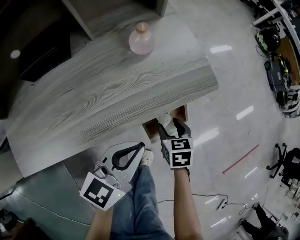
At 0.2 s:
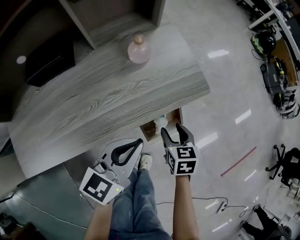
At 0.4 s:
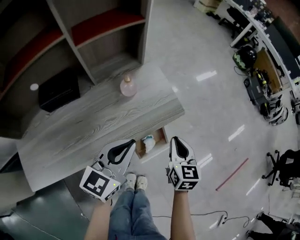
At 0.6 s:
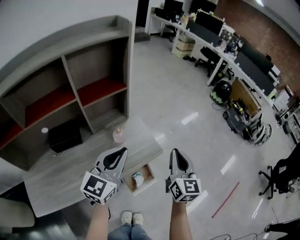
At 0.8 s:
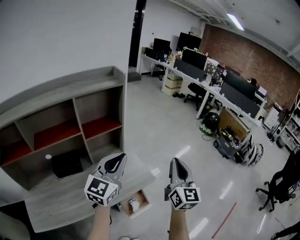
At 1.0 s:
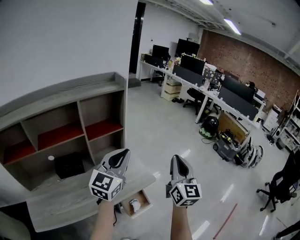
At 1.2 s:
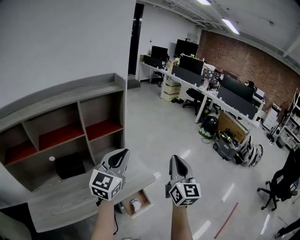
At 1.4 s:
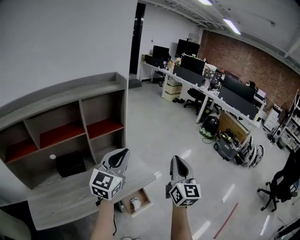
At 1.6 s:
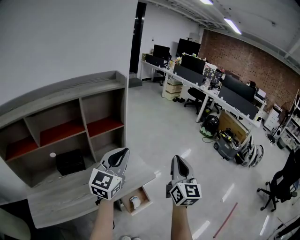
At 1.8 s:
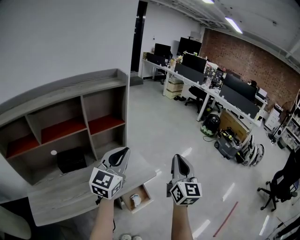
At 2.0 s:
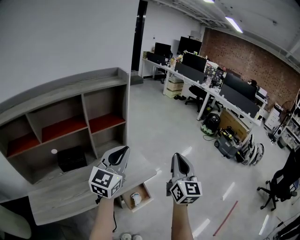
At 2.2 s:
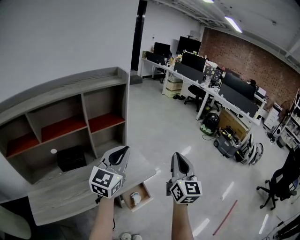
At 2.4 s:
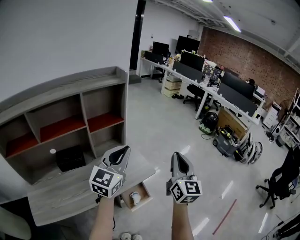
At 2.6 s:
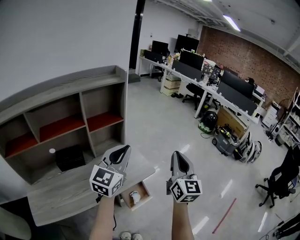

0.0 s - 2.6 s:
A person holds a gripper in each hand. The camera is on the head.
0.0 s - 1.2 s: The two grippers go roughly 50 cm upward. The right gripper tips its fingers upward by about 70 degrees, and closes its fingers, while the left gripper rotates approximately 40 degrees.
1.2 s - 2.6 s: The grippers make only small movements.

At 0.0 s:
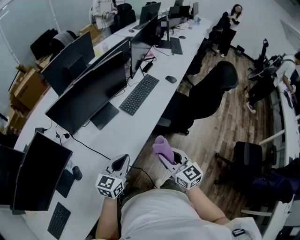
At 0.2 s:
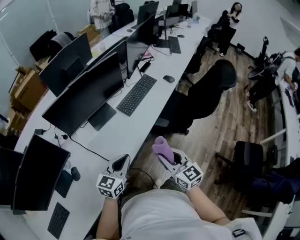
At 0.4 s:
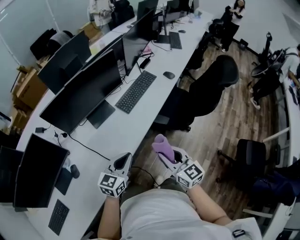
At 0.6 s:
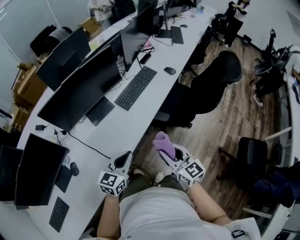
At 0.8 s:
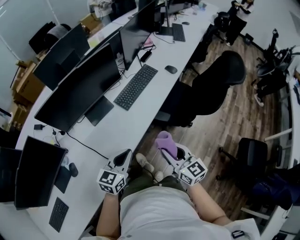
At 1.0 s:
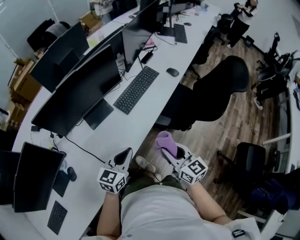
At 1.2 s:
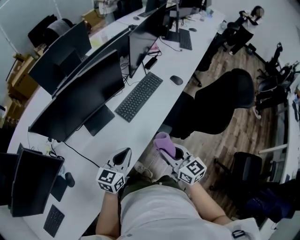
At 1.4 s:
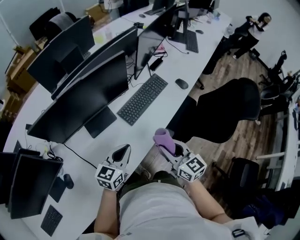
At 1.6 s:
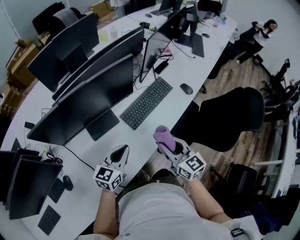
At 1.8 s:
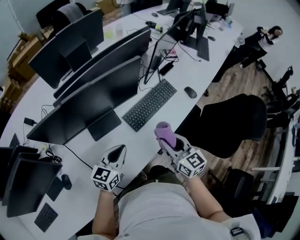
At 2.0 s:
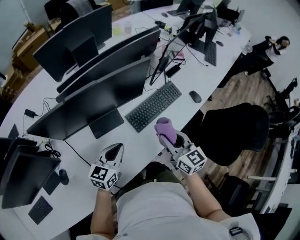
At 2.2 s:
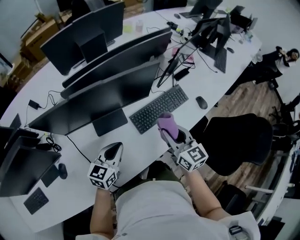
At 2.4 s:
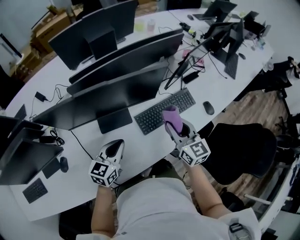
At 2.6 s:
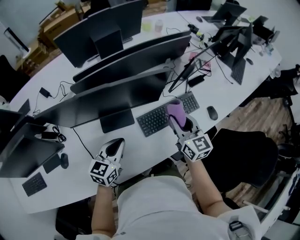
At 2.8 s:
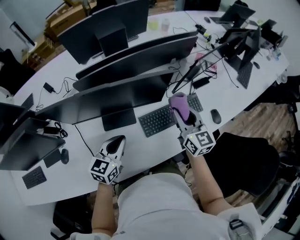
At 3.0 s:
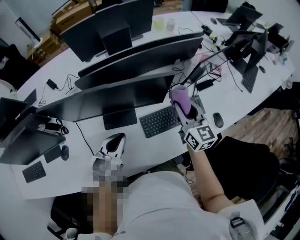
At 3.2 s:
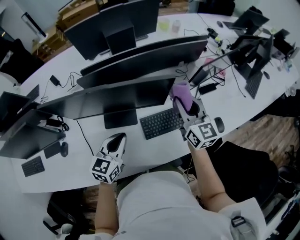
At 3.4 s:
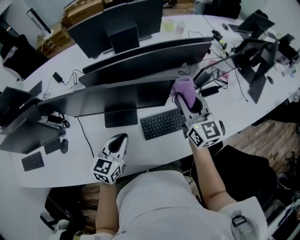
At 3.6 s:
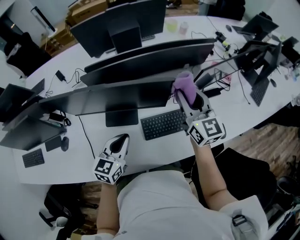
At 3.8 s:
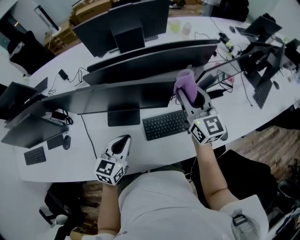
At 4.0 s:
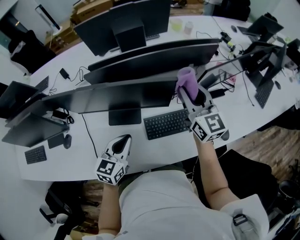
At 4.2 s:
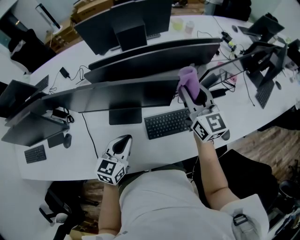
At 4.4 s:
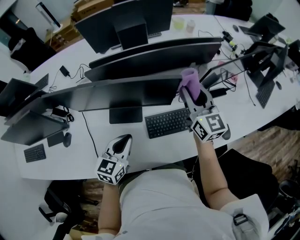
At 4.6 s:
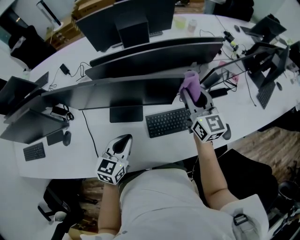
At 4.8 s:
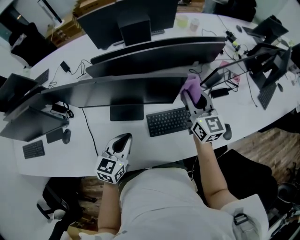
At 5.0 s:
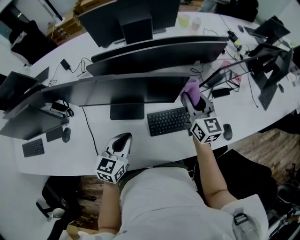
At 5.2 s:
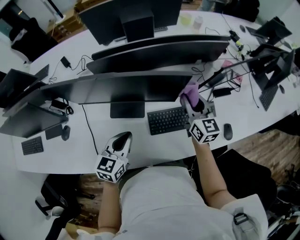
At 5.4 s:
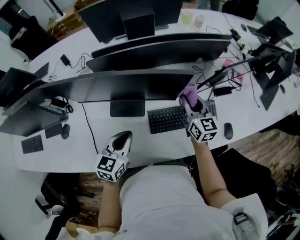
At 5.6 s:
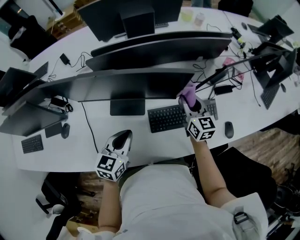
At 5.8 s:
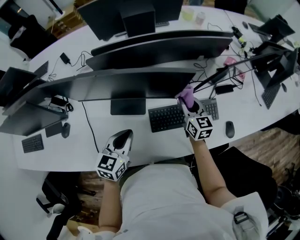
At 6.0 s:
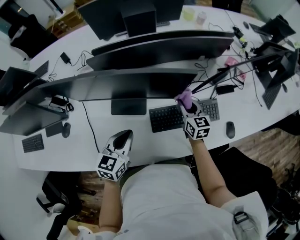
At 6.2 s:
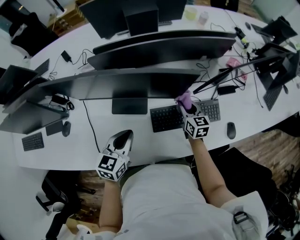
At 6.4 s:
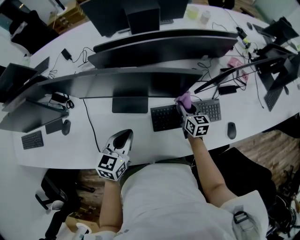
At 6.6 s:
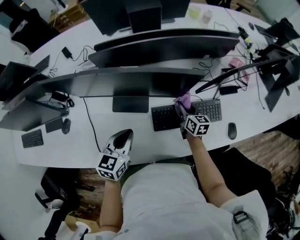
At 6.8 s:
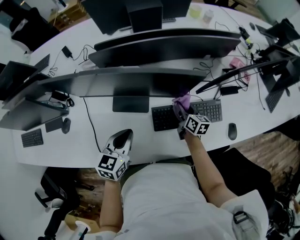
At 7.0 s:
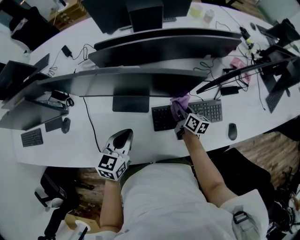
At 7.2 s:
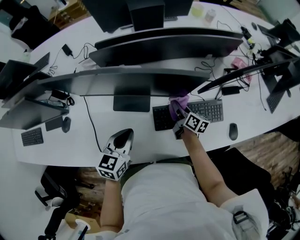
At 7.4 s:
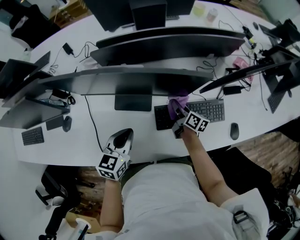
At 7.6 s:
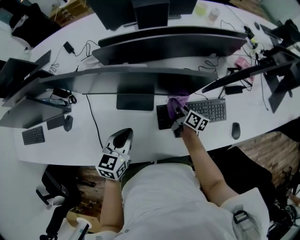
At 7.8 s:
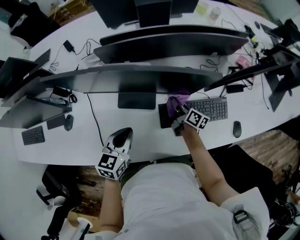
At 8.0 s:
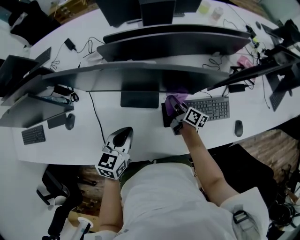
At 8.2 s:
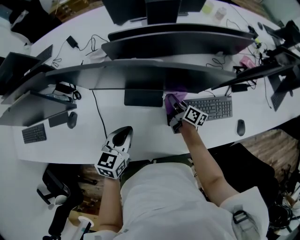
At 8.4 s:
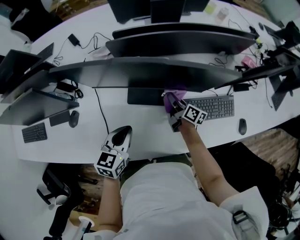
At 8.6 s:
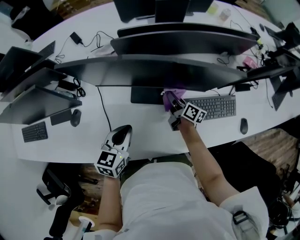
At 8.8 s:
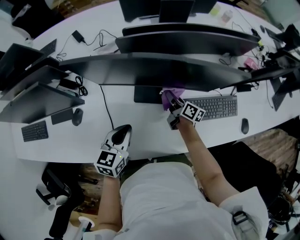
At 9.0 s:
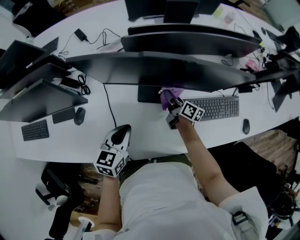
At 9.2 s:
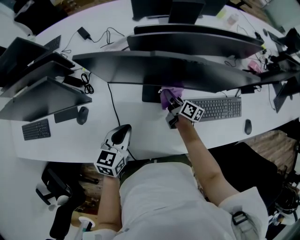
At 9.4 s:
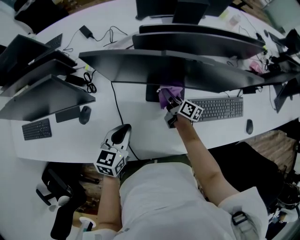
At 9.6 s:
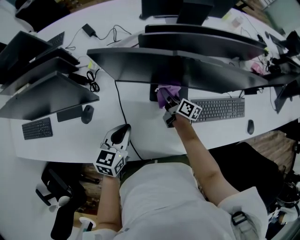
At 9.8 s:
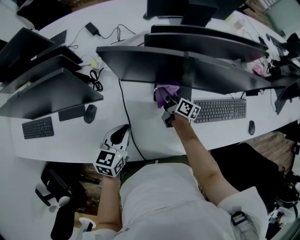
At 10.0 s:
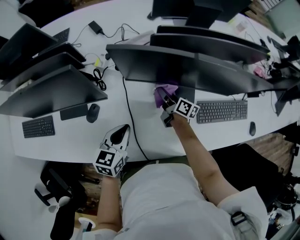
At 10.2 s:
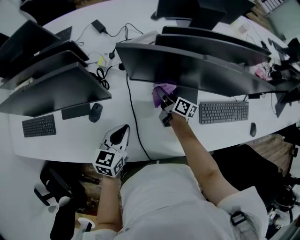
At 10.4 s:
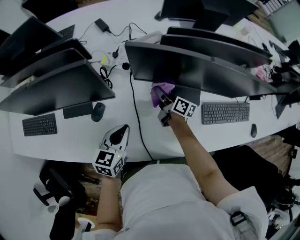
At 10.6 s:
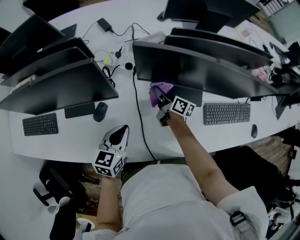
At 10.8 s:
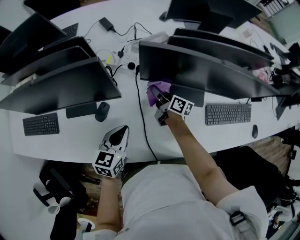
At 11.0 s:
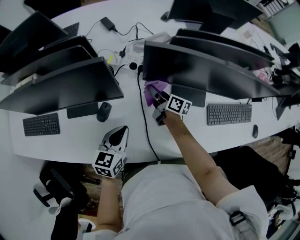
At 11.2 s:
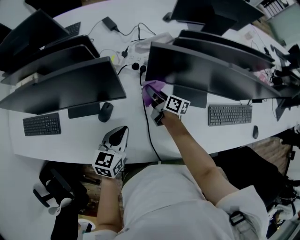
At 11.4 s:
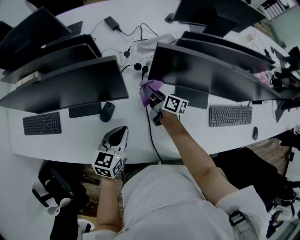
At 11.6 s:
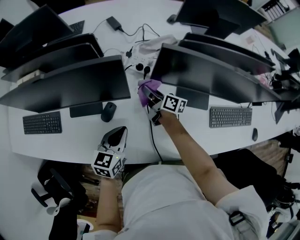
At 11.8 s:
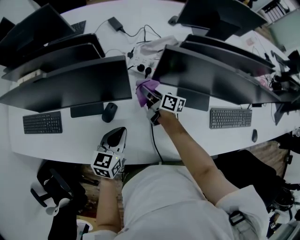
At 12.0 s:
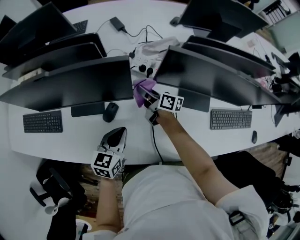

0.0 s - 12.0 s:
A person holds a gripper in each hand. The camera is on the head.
0.0 s - 1.6 s: Both grippers move forward, about 25 cm.
1.6 s - 3.0 s: The left gripper is displaced forward by roughly 10 cm, and swivels roughly 30 degrees; the right gripper moves forward, some 30 cm.
3.0 s - 4.4 s: The right gripper is displaced forward by roughly 5 cm.
4.4 s - 6.0 s: The right gripper travels downward by some 20 cm, and turns by some 20 degrees.
6.0 s - 7.6 s: The right gripper travels downward and to the left by roughly 10 cm, and rotates around the line of its fingers by approximately 50 degrees, clockwise from behind.
7.6 s - 9.0 s: Both grippers travel together to the left, about 15 cm.
9.0 s - 10.4 s: The grippers both shift to the left by roughly 20 cm.
10.4 s - 12.0 s: The left gripper goes about 10 cm to the left. The right gripper moves to the left, about 15 cm.

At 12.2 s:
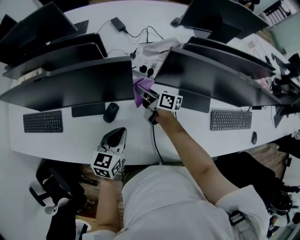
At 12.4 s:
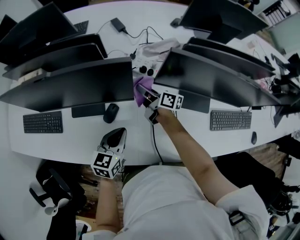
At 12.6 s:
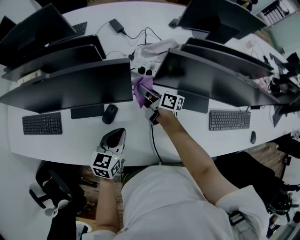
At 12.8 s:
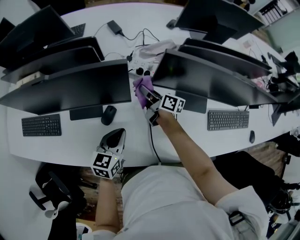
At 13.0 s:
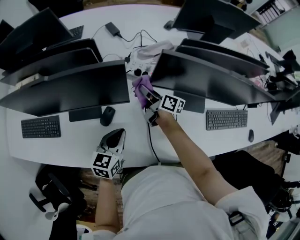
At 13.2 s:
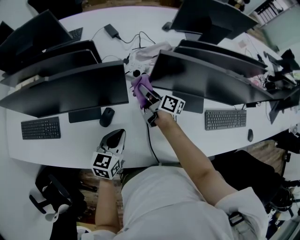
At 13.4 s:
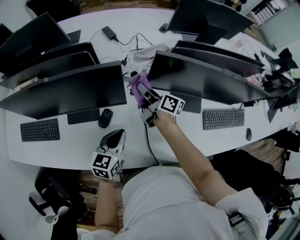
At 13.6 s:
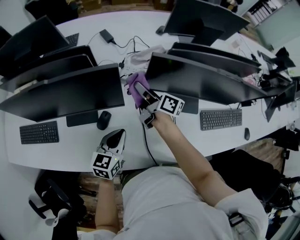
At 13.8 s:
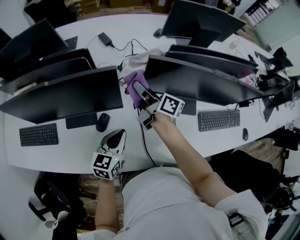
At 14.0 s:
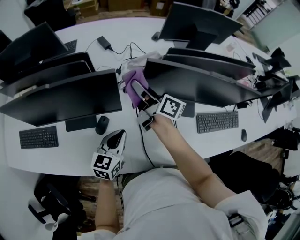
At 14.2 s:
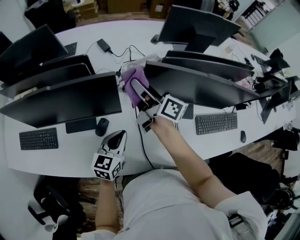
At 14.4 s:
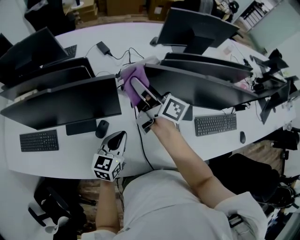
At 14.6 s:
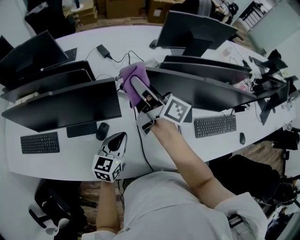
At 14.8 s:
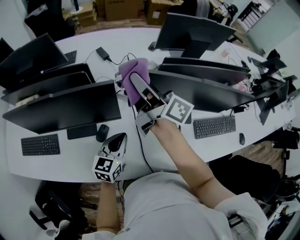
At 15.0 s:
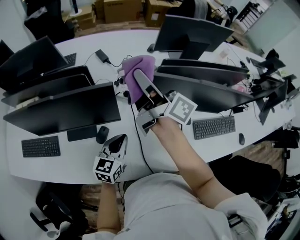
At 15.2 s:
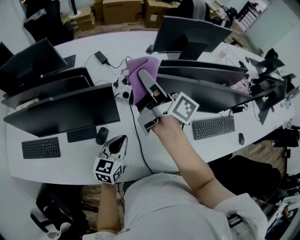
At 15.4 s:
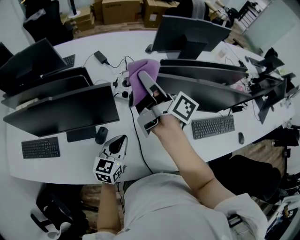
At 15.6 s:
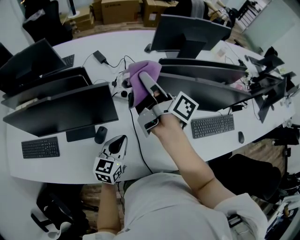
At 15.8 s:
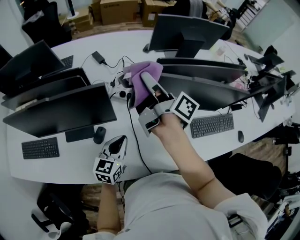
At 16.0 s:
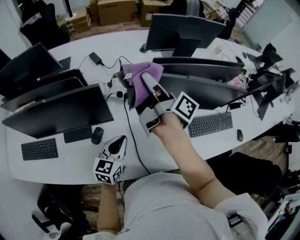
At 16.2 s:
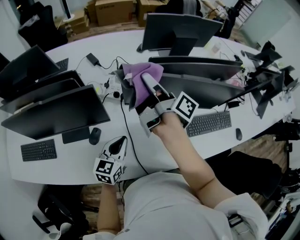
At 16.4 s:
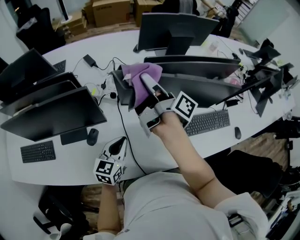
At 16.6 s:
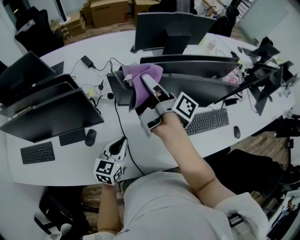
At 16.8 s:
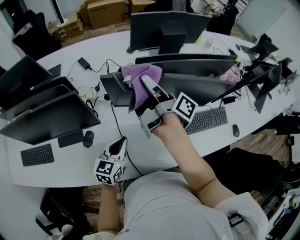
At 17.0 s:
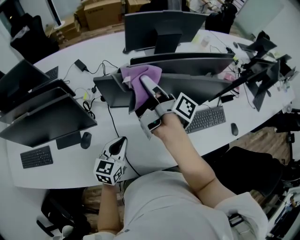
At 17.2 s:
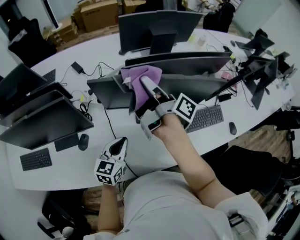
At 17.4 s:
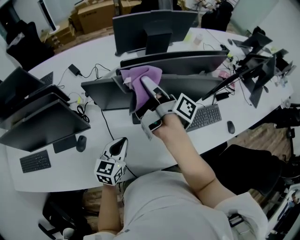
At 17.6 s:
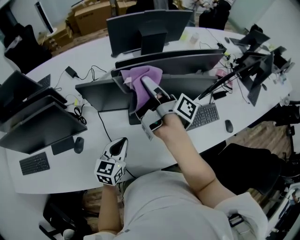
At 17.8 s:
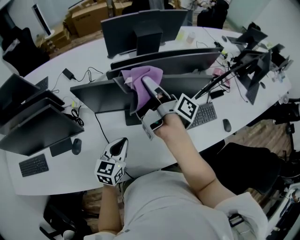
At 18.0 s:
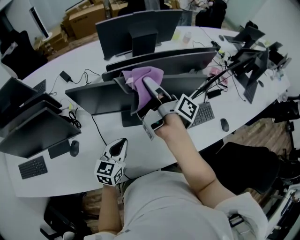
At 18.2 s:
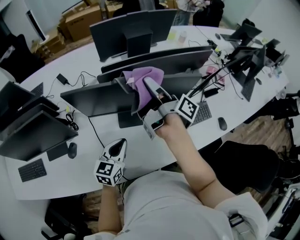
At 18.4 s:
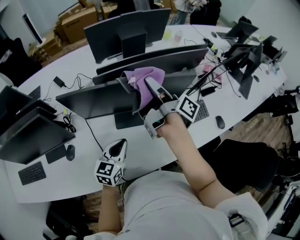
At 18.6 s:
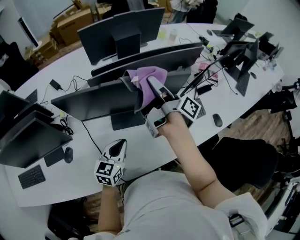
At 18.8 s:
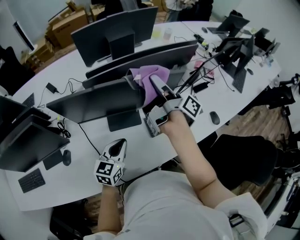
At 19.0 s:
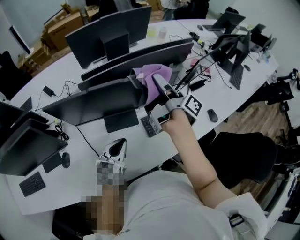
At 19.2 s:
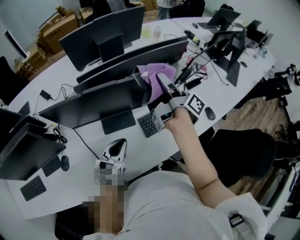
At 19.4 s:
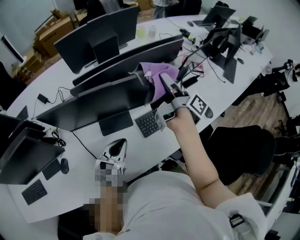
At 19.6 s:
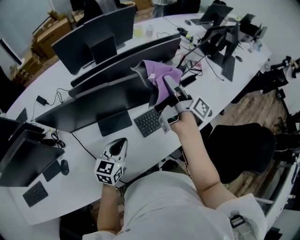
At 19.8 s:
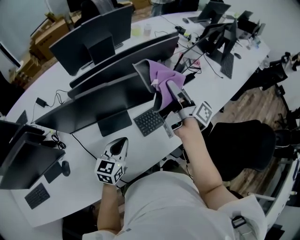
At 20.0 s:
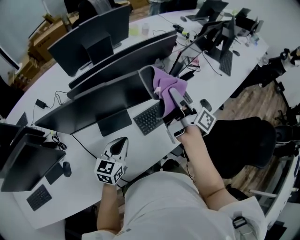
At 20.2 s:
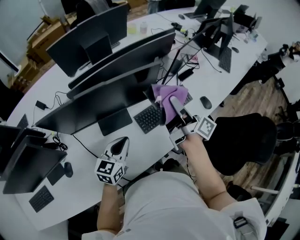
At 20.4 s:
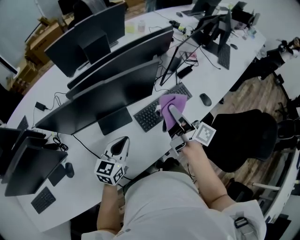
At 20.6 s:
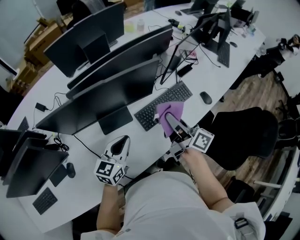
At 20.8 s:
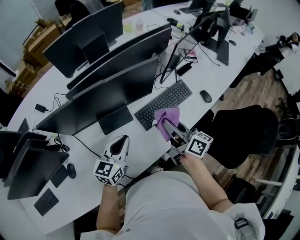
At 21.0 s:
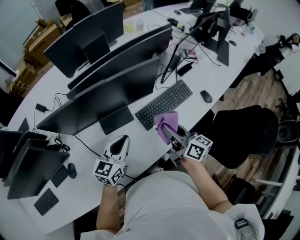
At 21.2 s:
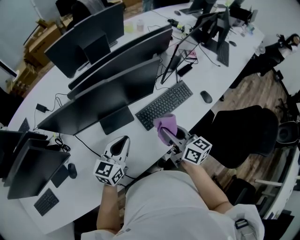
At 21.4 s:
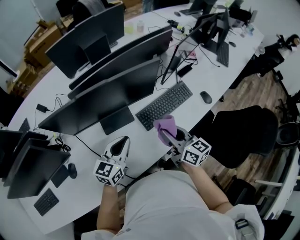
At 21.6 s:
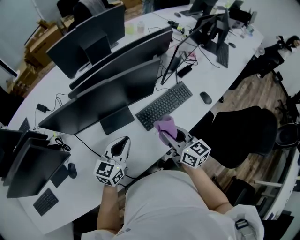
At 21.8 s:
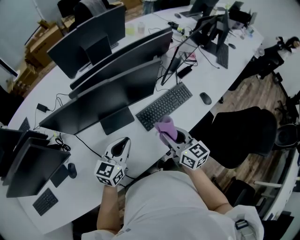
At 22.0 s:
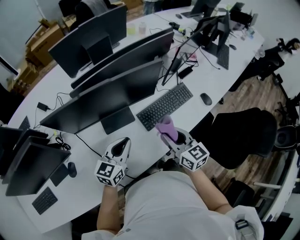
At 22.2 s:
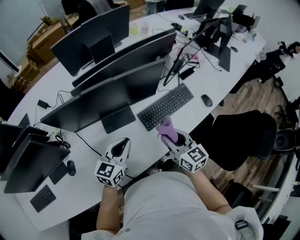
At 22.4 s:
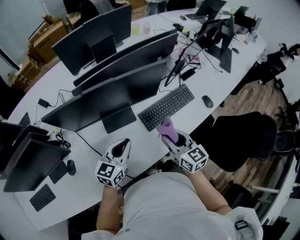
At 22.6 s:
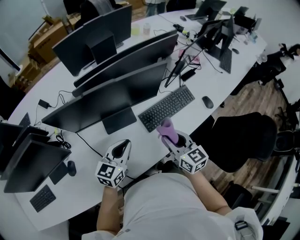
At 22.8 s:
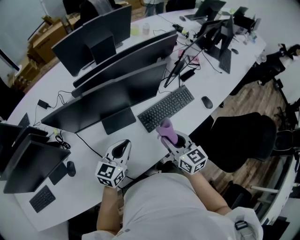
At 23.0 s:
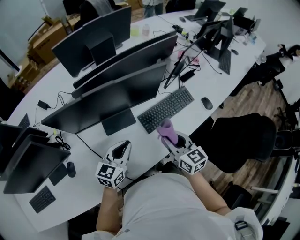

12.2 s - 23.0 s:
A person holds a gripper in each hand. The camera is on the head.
12.2 s - 13.8 s: The left gripper moves about 5 cm, while the right gripper moves upward, about 15 cm.
13.8 s - 15.2 s: The right gripper travels upward by some 20 cm.
15.2 s - 16.8 s: The two grippers go about 10 cm to the right. The right gripper rotates approximately 20 degrees.
16.8 s - 18.4 s: Both grippers travel together to the right, roughly 20 cm.
18.4 s - 20.0 s: The left gripper travels to the right by approximately 10 cm; the right gripper heads to the right, covering roughly 20 cm, and swivels approximately 20 degrees.
20.0 s - 21.4 s: The right gripper travels backward and downward by roughly 20 cm, and twists about 50 degrees counterclockwise, seen from behind.
21.4 s - 23.0 s: The grippers make only small movements.
